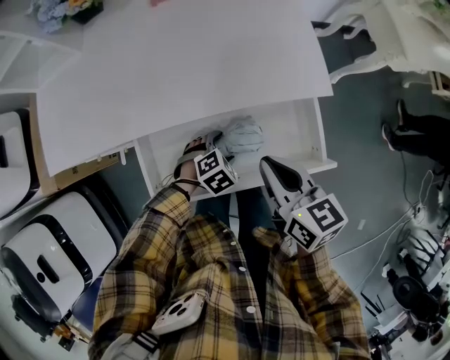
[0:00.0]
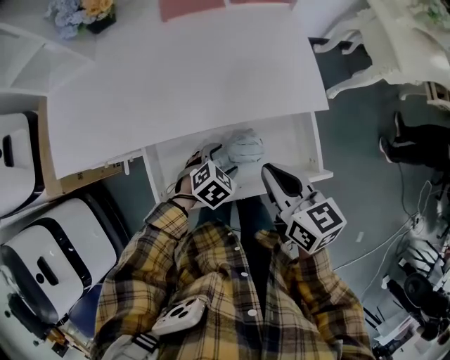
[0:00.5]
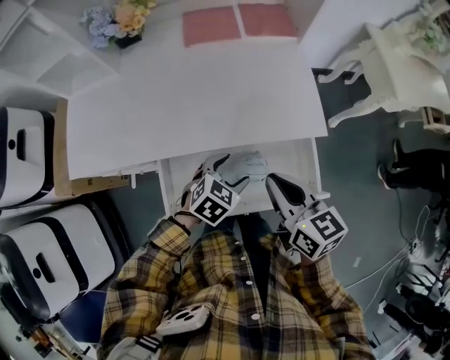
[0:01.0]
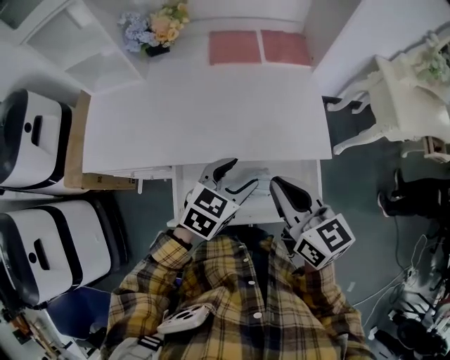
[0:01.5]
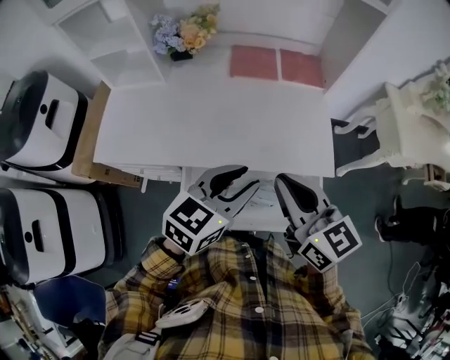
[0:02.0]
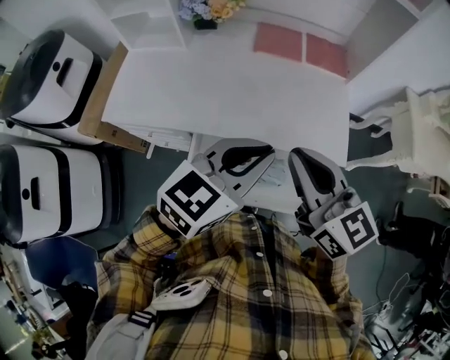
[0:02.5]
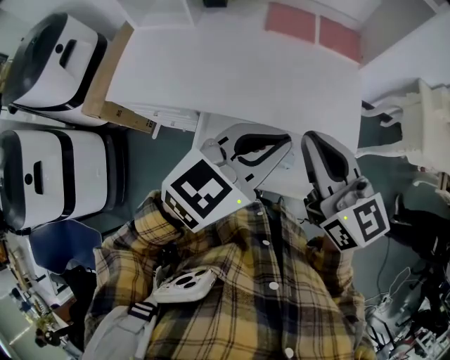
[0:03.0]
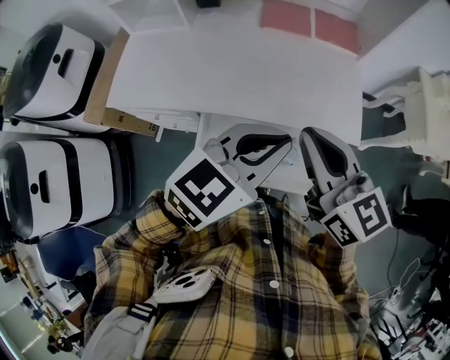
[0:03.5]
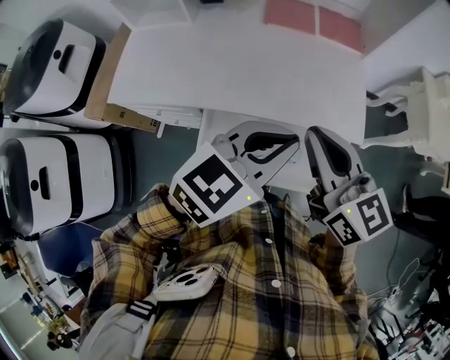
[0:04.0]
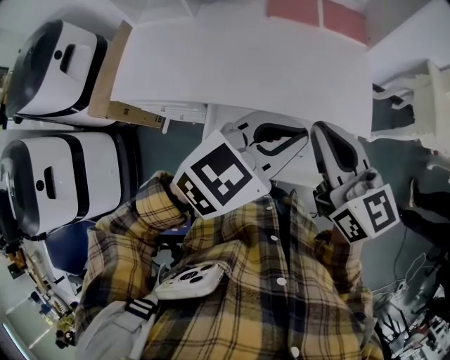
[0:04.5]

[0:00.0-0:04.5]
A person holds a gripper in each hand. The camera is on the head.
0:00.0 to 0:02.0: The left gripper is displaced upward by about 35 cm, angles its fingers upward, by about 50 degrees, and closes, while the right gripper shifts some 20 cm upward, and swivels about 30 degrees.
0:02.0 to 0:04.5: The left gripper changes place by roughly 5 cm, and closes its fingers.

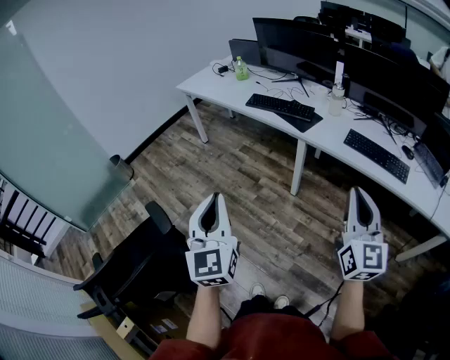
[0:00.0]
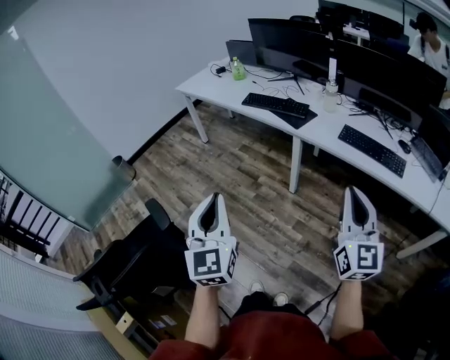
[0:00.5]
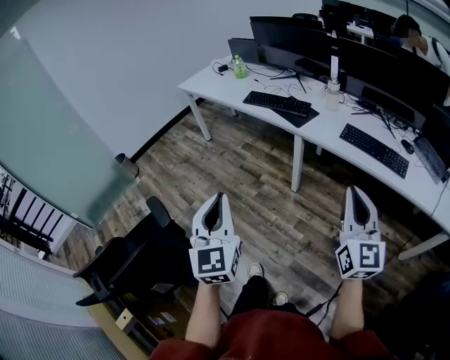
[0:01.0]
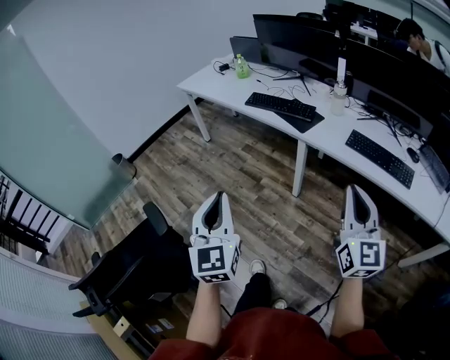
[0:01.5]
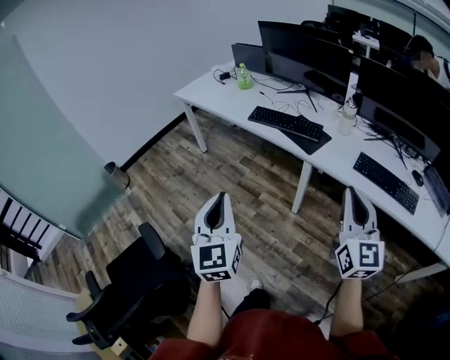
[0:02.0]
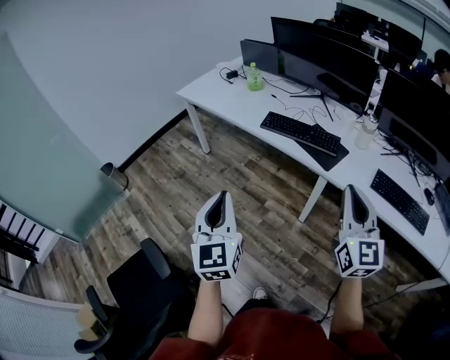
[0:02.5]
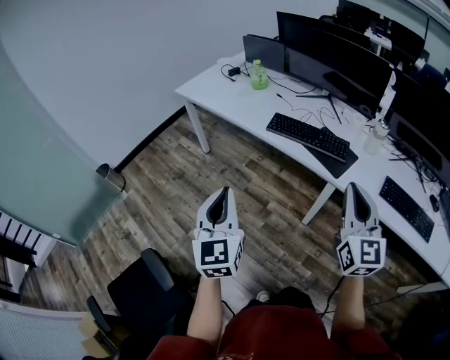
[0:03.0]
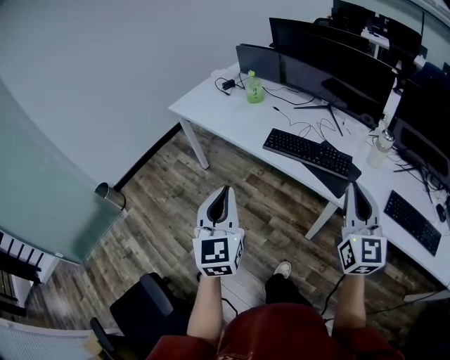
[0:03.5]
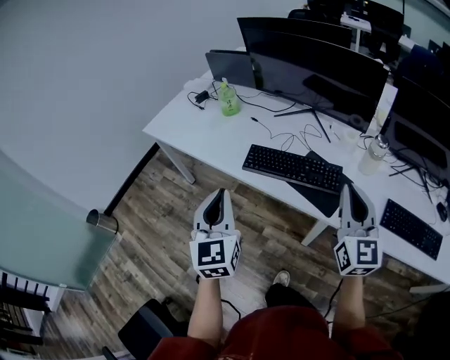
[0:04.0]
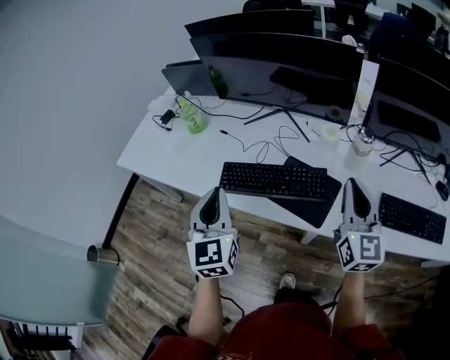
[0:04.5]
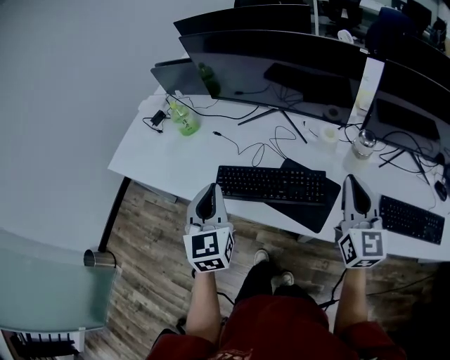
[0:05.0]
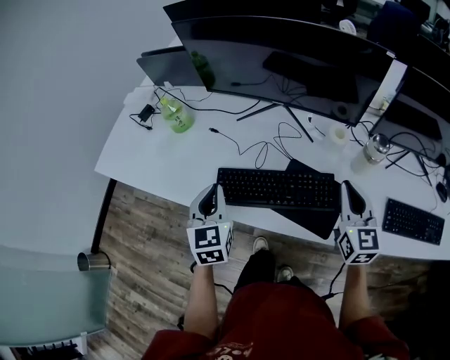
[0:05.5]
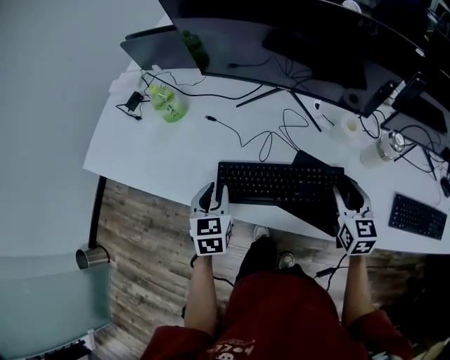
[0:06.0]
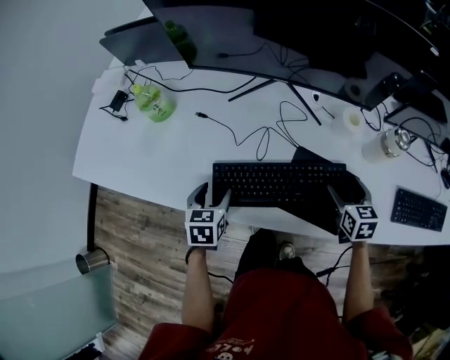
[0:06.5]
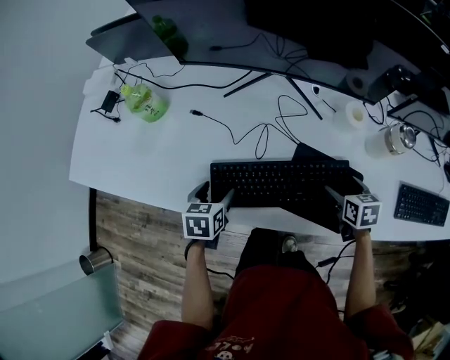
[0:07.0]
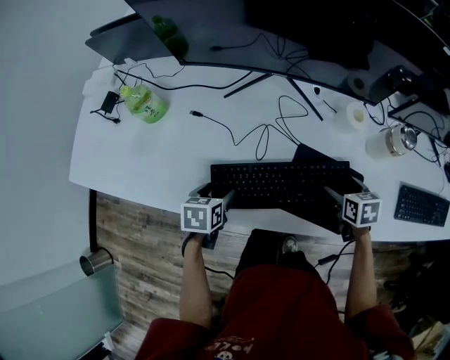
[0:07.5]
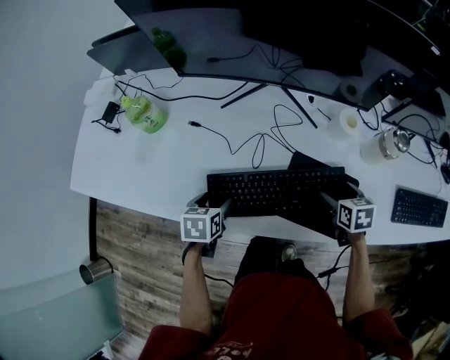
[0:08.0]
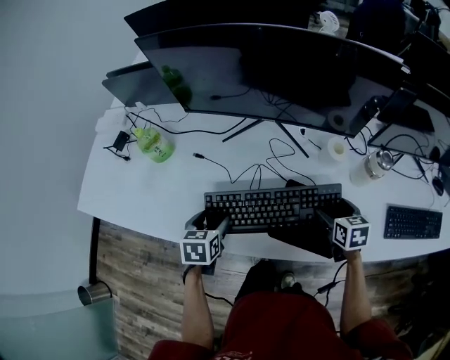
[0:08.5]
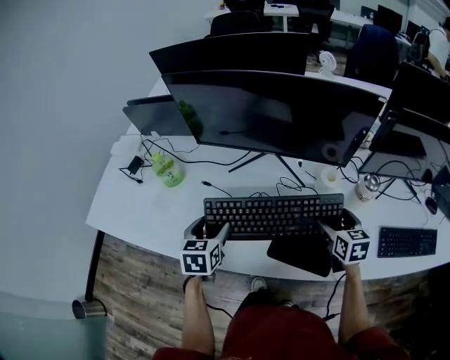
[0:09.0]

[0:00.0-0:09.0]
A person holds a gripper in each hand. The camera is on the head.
0:00.0 to 0:02.0: Both grippers move forward, approximately 15 cm.
0:02.0 to 0:04.5: Both grippers are carried forward, approximately 50 cm.
0:04.5 to 0:07.0: The grippers both shift downward and forward by about 35 cm. The right gripper points its fingers approximately 60 degrees further downward, and opens. Meanwhile the left gripper tilts its fingers some 50 degrees downward, and opens up.
0:07.0 to 0:09.0: The grippers both shift upward by about 15 cm. The right gripper rotates about 20 degrees.

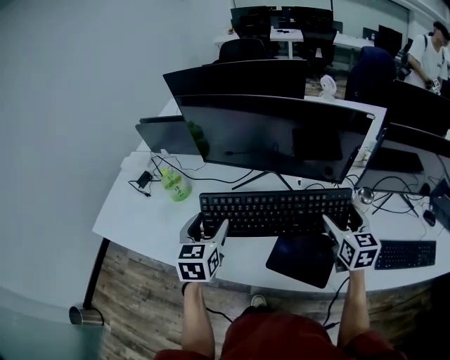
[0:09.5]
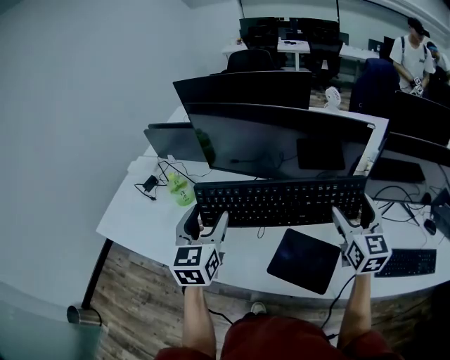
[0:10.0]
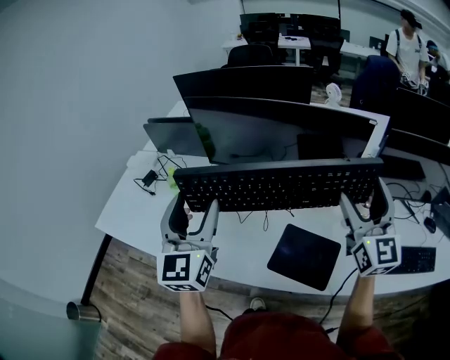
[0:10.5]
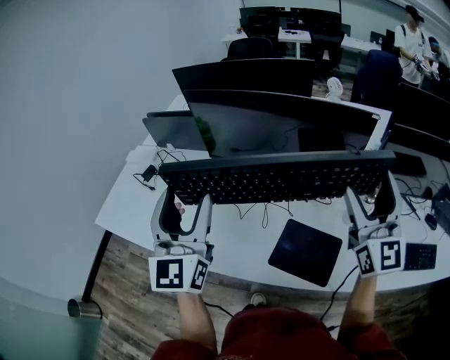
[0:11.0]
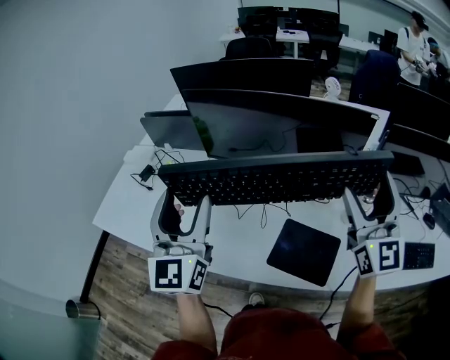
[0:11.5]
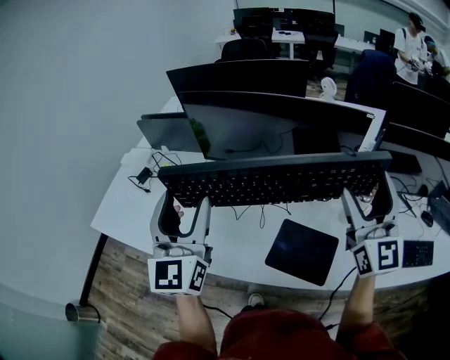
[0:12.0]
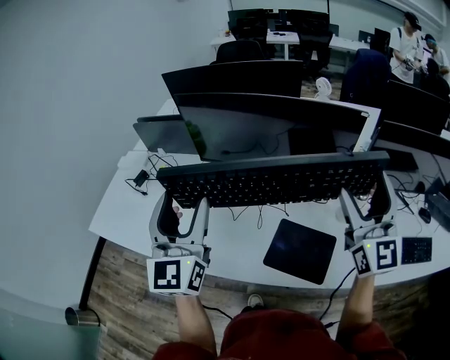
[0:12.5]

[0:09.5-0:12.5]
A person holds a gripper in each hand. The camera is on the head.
0:09.5 to 0:11.0: The two grippers go about 20 cm upward. The right gripper tilts its fingers some 40 degrees upward; the left gripper tilts its fingers roughly 40 degrees upward.
0:11.0 to 0:12.5: Both grippers stay about where they are.

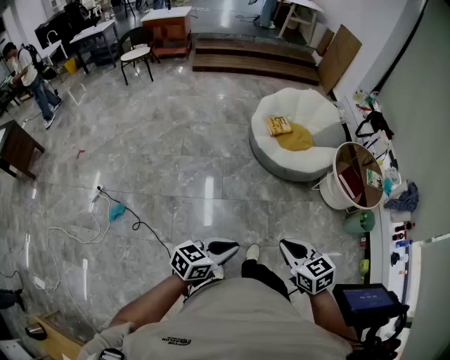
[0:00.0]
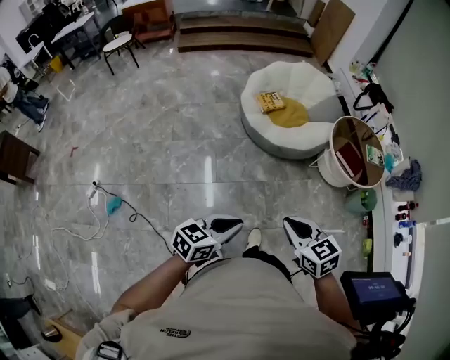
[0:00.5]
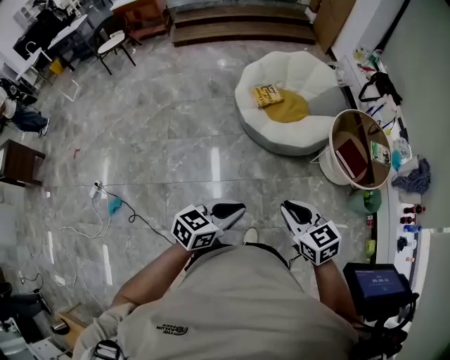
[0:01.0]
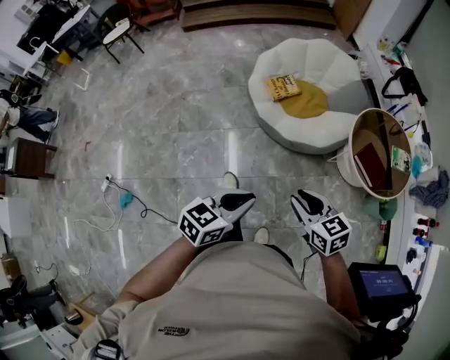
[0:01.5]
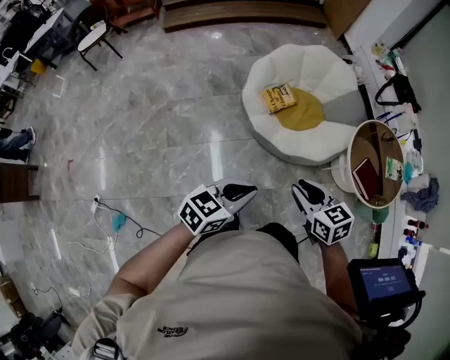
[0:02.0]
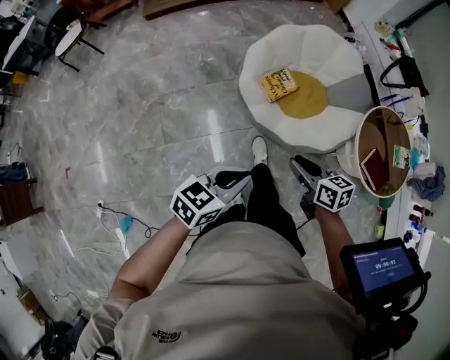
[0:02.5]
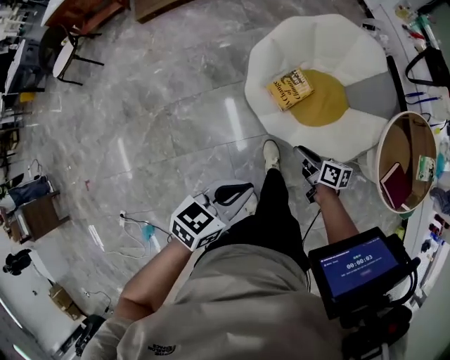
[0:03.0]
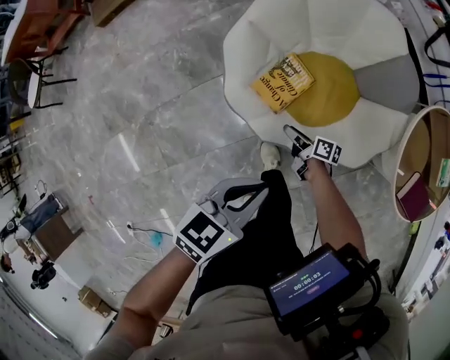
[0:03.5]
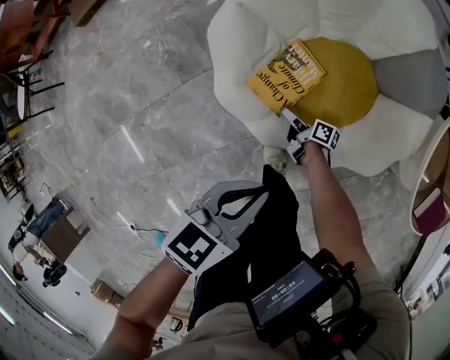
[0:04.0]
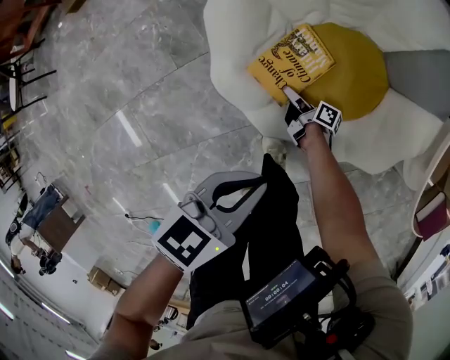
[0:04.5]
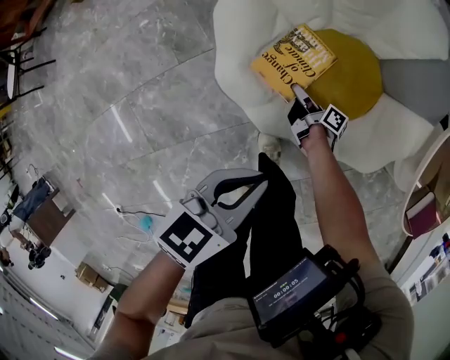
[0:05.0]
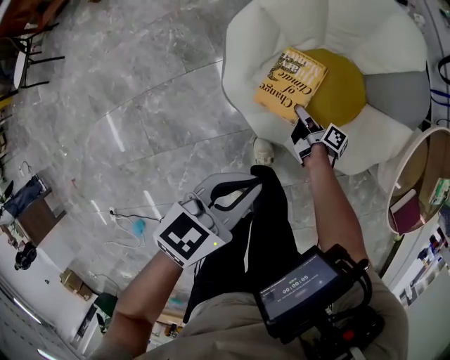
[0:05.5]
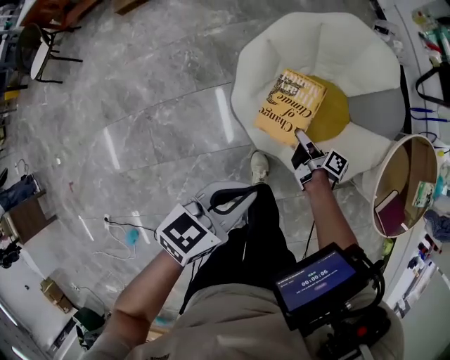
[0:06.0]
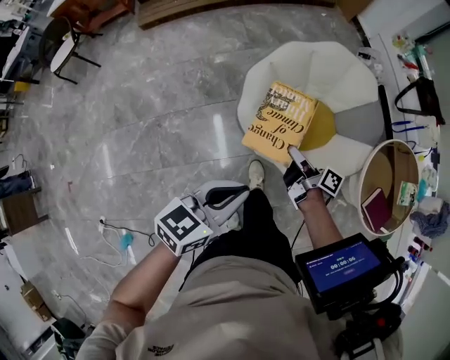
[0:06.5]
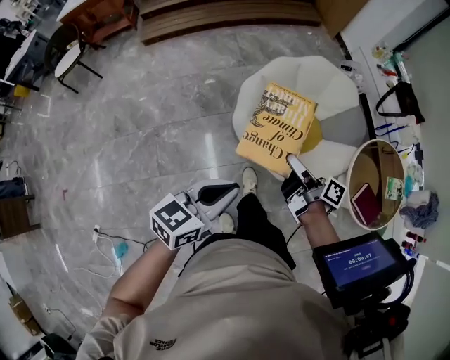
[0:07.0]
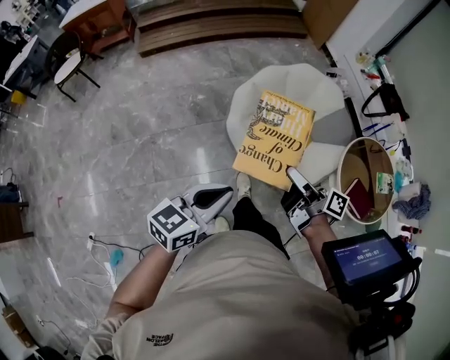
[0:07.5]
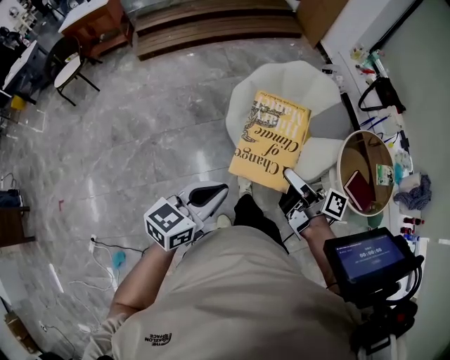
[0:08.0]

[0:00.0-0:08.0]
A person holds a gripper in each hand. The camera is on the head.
0:00.0 to 0:02.0: The left gripper changes place by approximately 50 cm.
0:02.0 to 0:04.0: The left gripper ends up about 60 cm from where it was.
0:04.0 to 0:06.0: The left gripper goes roughly 20 cm upward.
0:06.0 to 0:08.0: The left gripper ends up some 35 cm from where it was.

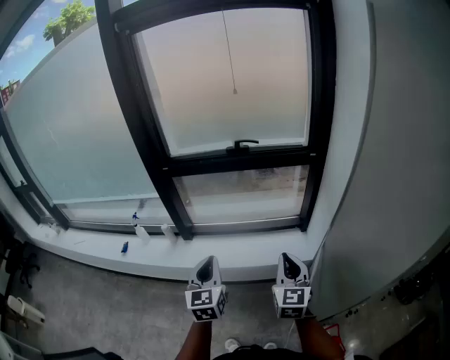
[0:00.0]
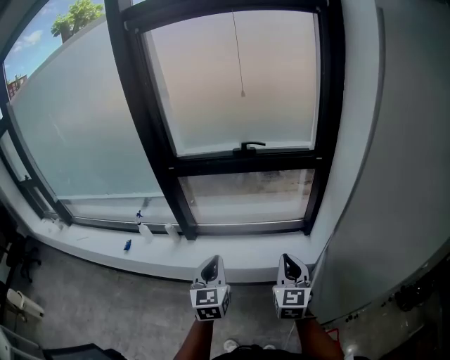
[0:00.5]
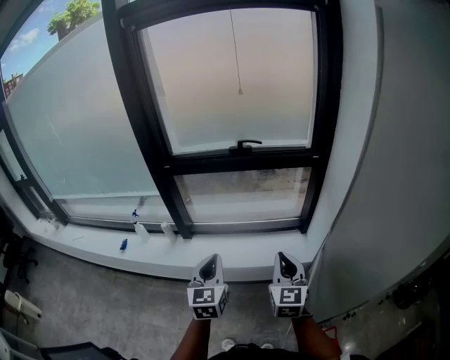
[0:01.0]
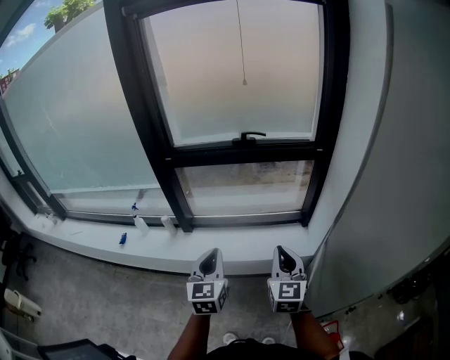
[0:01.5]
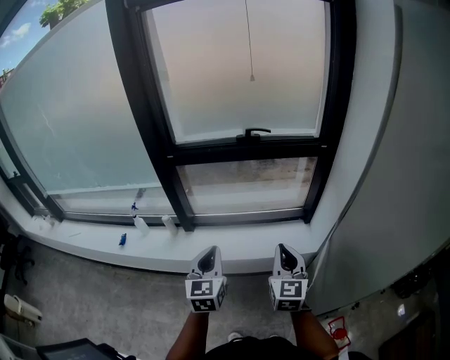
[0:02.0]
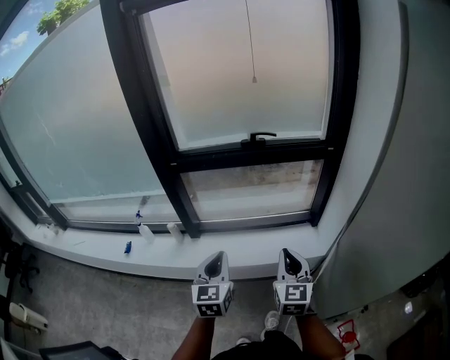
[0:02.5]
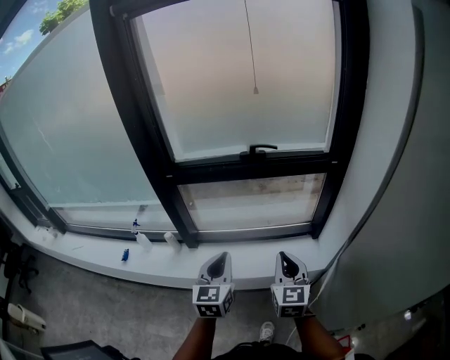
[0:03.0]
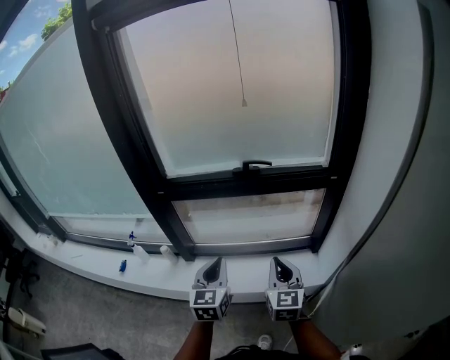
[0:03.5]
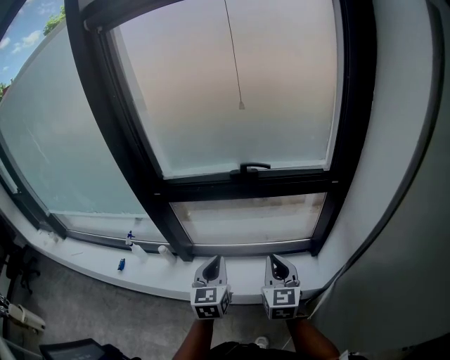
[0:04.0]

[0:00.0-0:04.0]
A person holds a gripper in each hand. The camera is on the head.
0:00.0 to 0:02.0: Both grippers move to the left, roughly 5 cm.
0:02.0 to 0:04.0: The grippers both shift forward by about 20 cm.
